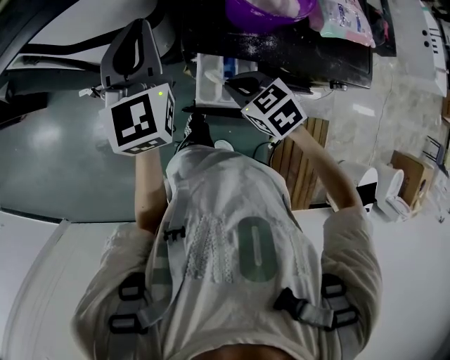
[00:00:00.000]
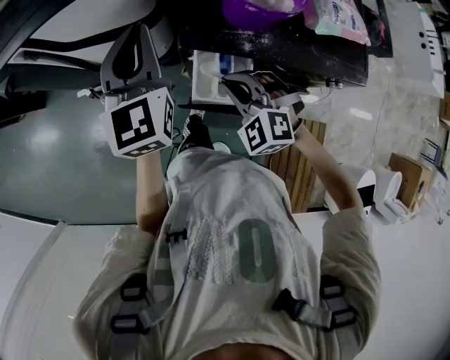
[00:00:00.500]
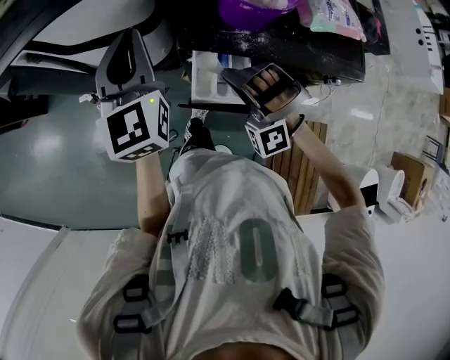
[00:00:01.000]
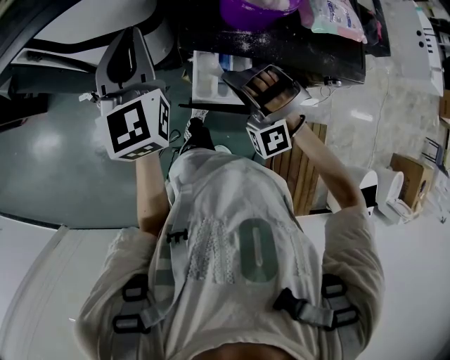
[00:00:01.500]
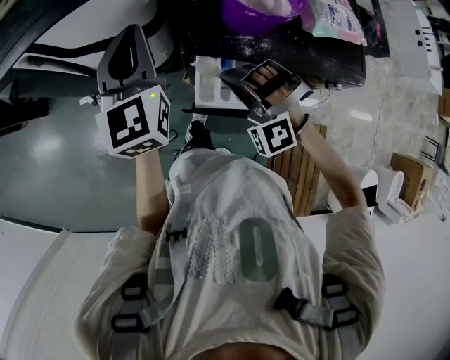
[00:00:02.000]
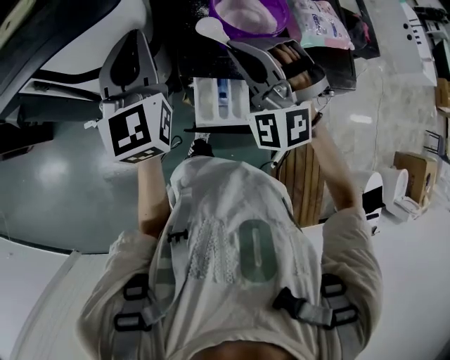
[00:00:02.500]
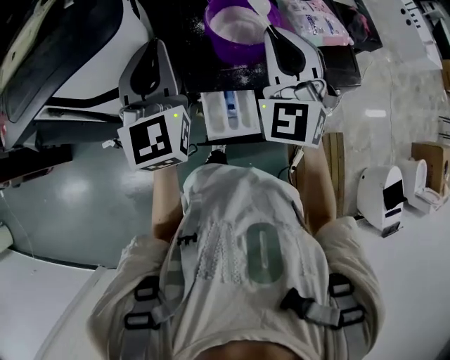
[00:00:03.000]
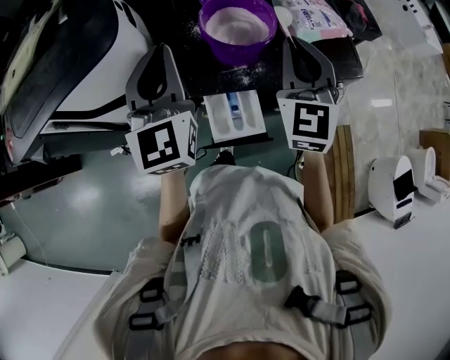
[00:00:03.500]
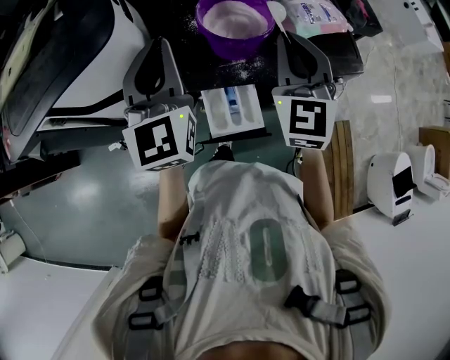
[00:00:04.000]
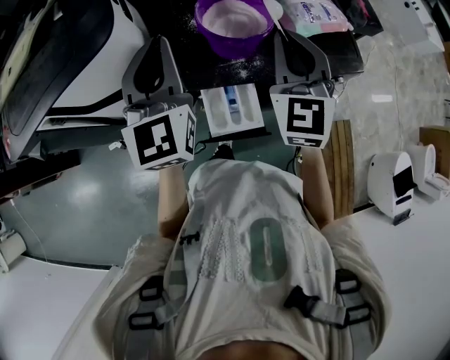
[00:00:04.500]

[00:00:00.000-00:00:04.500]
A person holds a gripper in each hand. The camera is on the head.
00:00:00.000 to 00:00:02.000: The right gripper heads upward, covering about 5 cm, and rolls counterclockwise, seen from behind, by about 80 degrees.
00:00:02.000 to 00:00:04.500: The left gripper ends up some 10 cm from where it was. Meanwhile the right gripper moves upward, about 15 cm, and twists approximately 70 degrees clockwise, seen from behind.

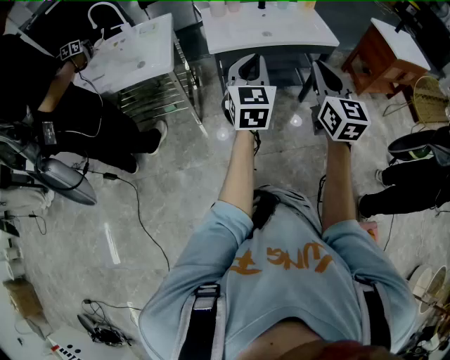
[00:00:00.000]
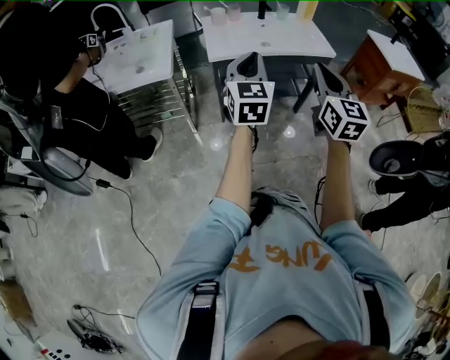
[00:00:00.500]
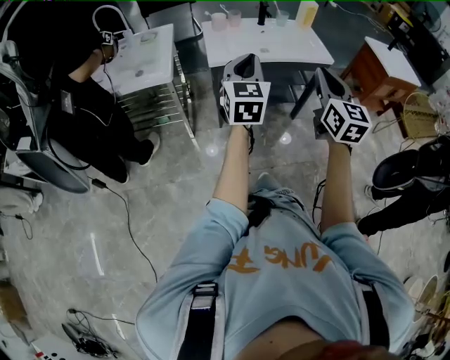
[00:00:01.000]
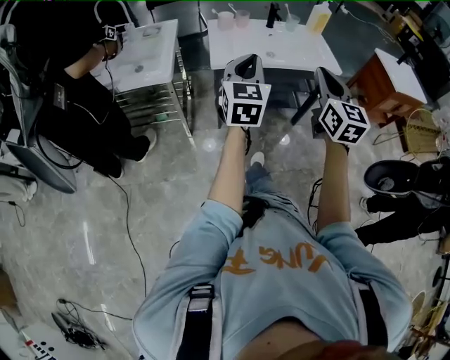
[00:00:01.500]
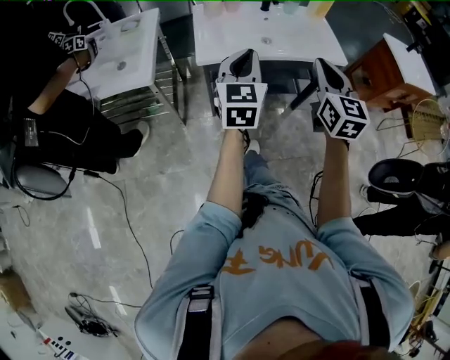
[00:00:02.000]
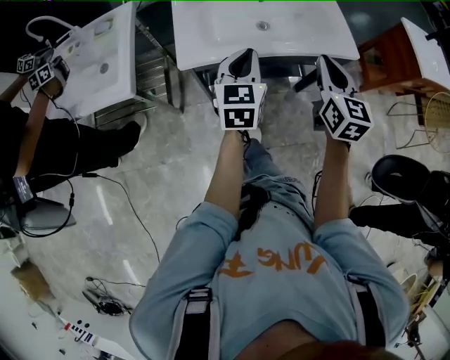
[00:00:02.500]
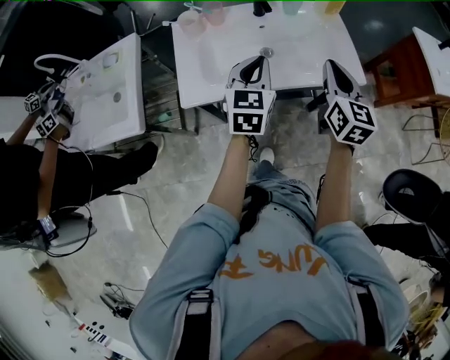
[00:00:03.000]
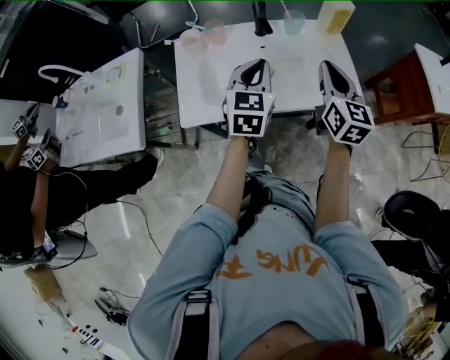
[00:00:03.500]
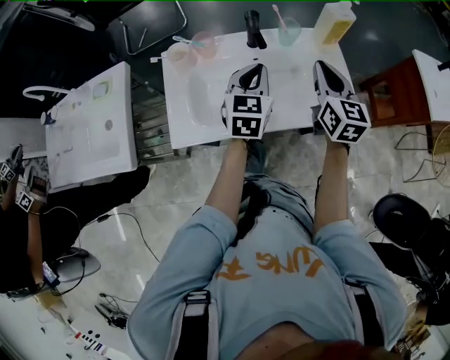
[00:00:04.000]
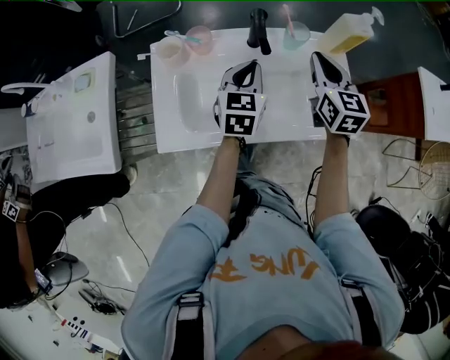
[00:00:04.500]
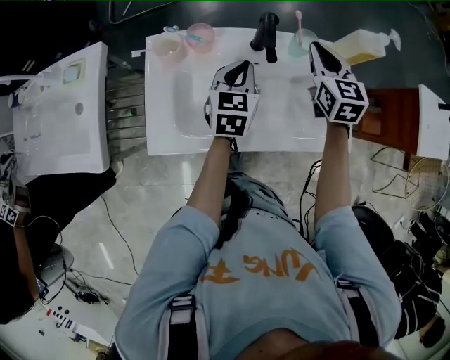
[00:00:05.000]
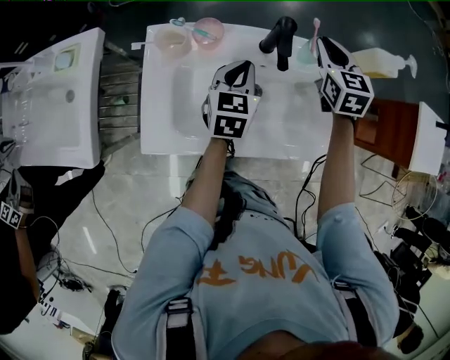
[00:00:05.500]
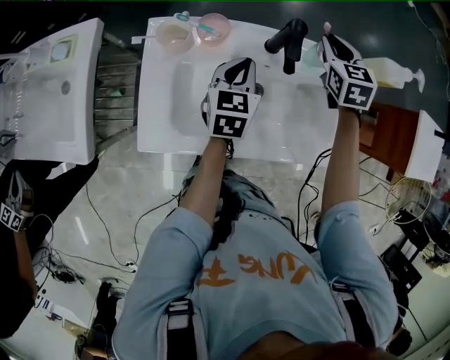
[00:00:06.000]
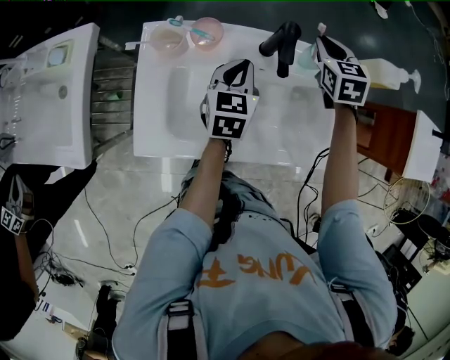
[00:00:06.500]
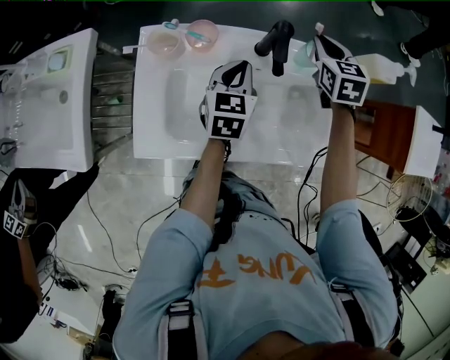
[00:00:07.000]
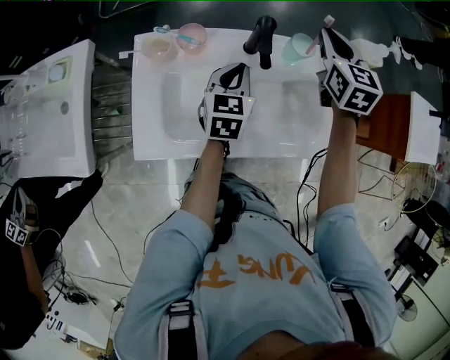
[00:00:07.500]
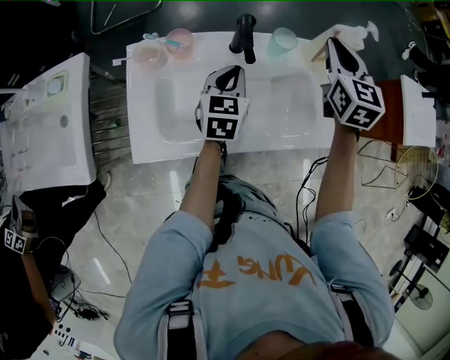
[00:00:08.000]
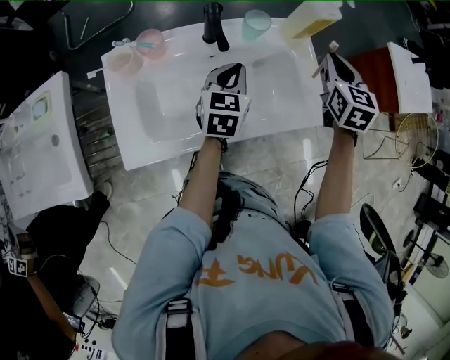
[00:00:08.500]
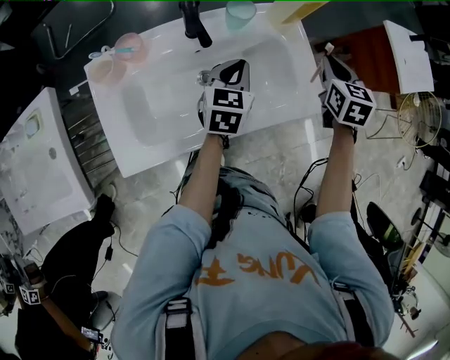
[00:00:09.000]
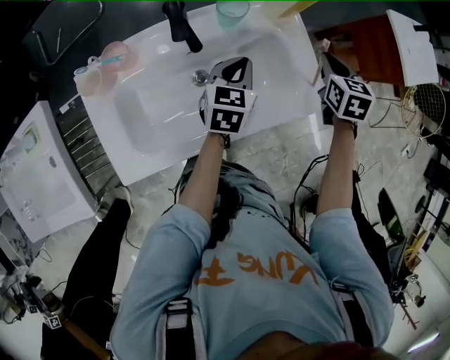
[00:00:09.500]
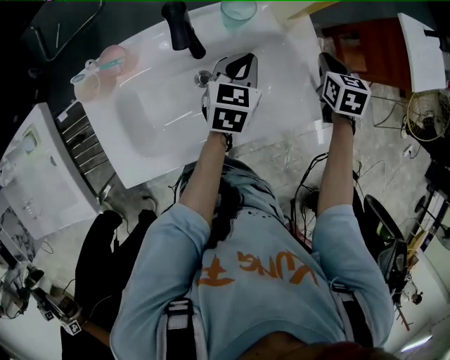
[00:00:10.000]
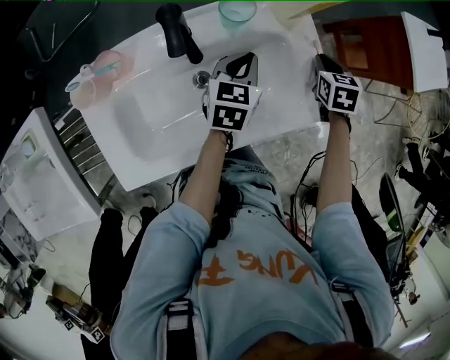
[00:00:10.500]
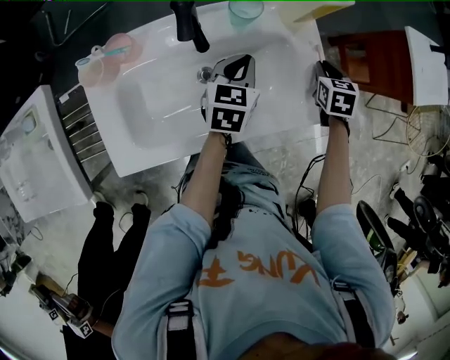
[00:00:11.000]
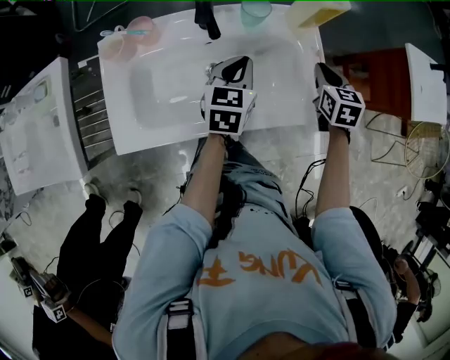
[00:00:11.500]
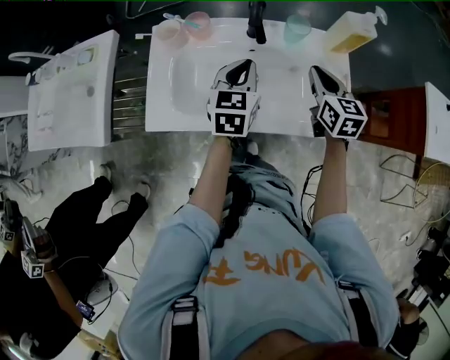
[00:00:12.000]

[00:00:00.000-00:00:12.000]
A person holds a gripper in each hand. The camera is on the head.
00:00:00.000 to 00:00:02.000: Both grippers travel together forward, some 20 cm.
00:00:02.000 to 00:00:04.000: Both grippers are carried forward, some 40 cm.
00:00:04.000 to 00:00:06.000: The right gripper is displaced forward and downward by some 25 cm, and turns by approximately 30 degrees; the left gripper shifts about 20 cm forward, downward and to the left.
00:00:06.000 to 00:00:08.000: The left gripper goes about 5 cm to the right. Meanwhile the right gripper moves upward, backward and to the right, about 20 cm, and rotates roughly 20 degrees.
00:00:08.000 to 00:00:10.000: The right gripper is displaced downward and to the right by about 30 cm, and tilts its fingers roughly 30 degrees downward. Meanwhile the left gripper heads to the right, forward and downward, covering some 15 cm, and turns by about 20 degrees.
00:00:10.000 to 00:00:12.000: The left gripper changes place by about 20 cm, and swivels some 30 degrees. Meanwhile the right gripper shifts by approximately 20 cm, and turns by some 40 degrees.

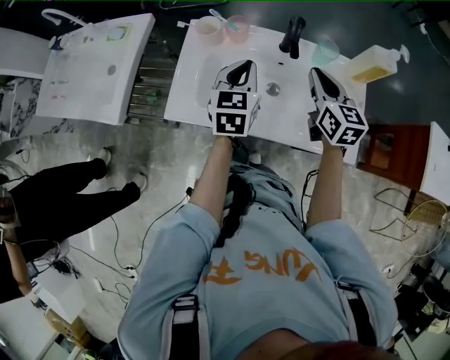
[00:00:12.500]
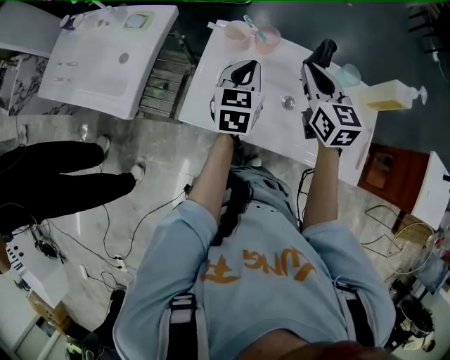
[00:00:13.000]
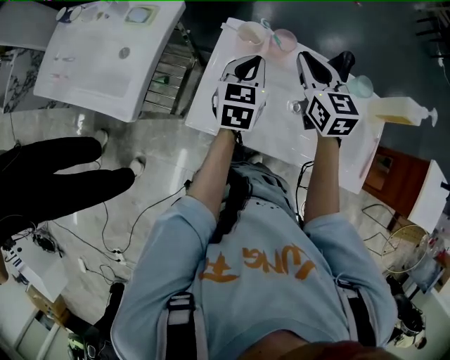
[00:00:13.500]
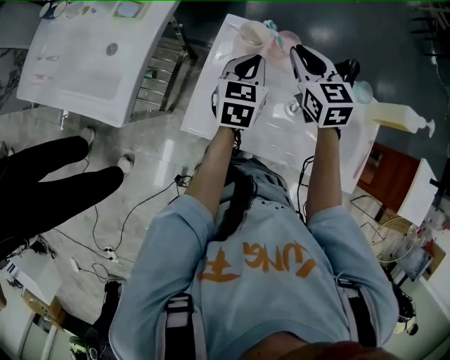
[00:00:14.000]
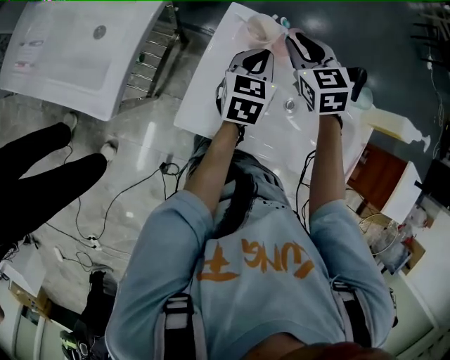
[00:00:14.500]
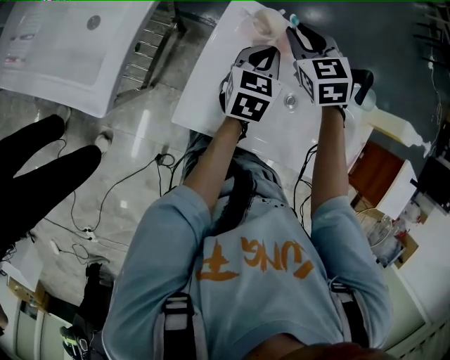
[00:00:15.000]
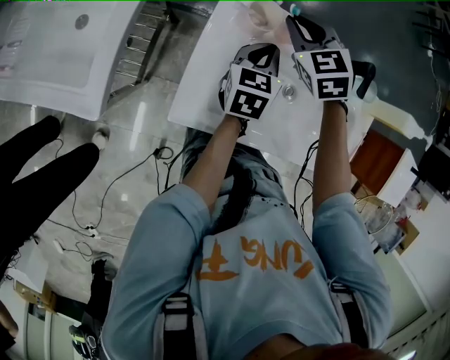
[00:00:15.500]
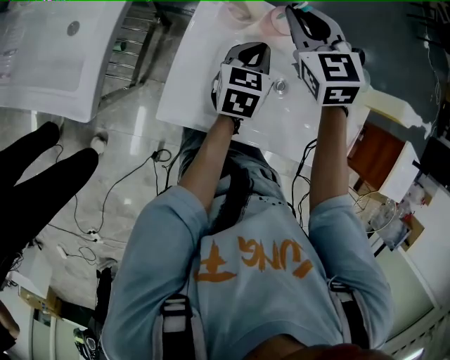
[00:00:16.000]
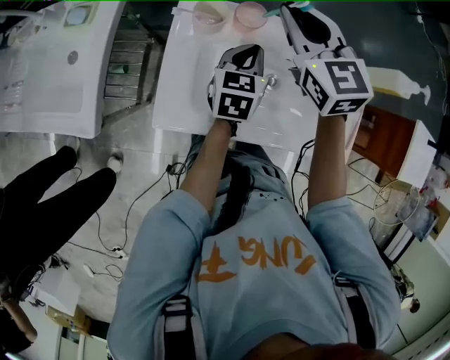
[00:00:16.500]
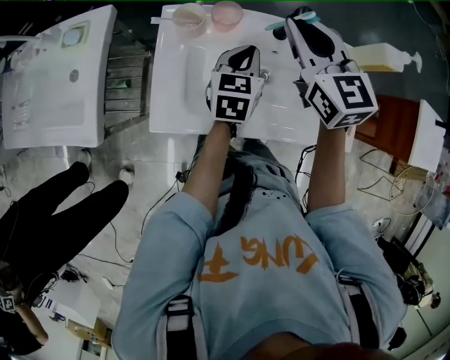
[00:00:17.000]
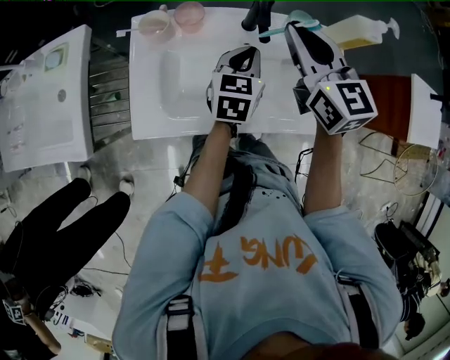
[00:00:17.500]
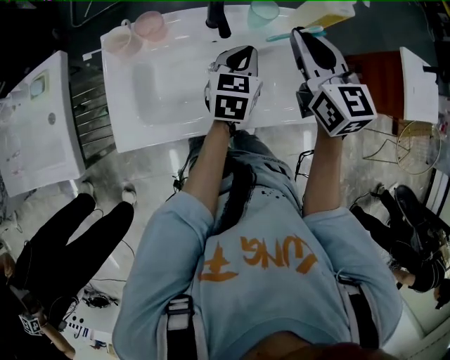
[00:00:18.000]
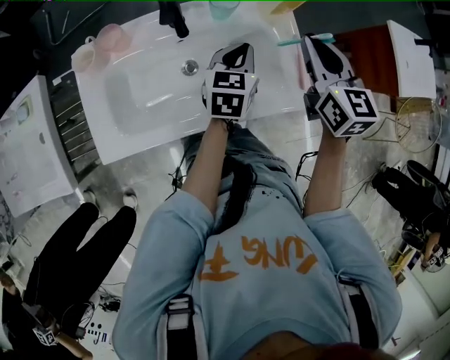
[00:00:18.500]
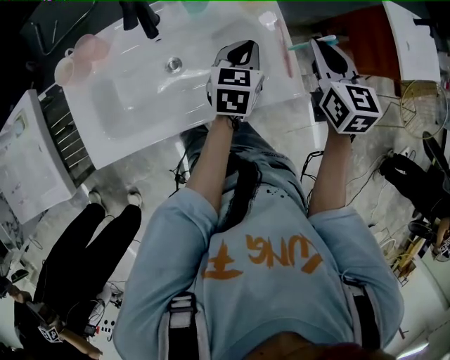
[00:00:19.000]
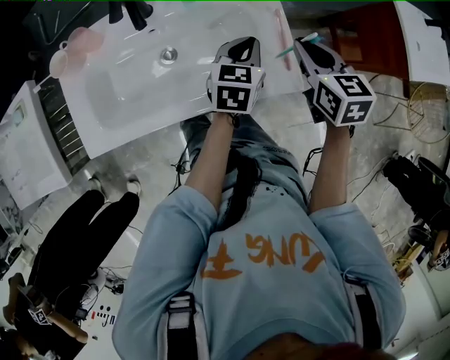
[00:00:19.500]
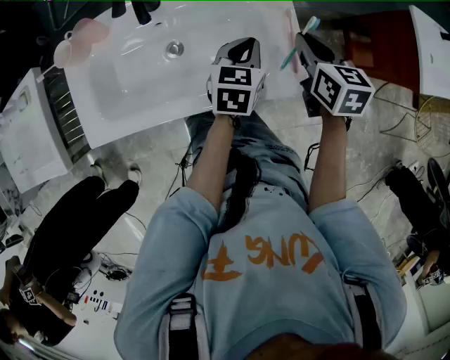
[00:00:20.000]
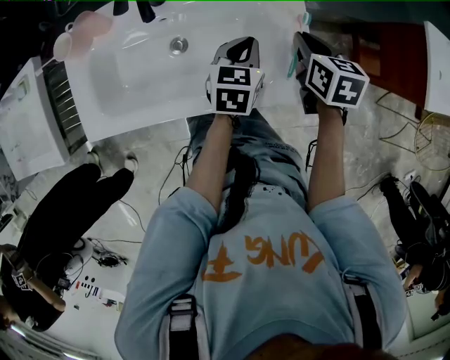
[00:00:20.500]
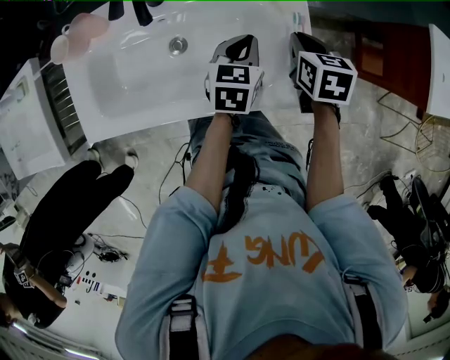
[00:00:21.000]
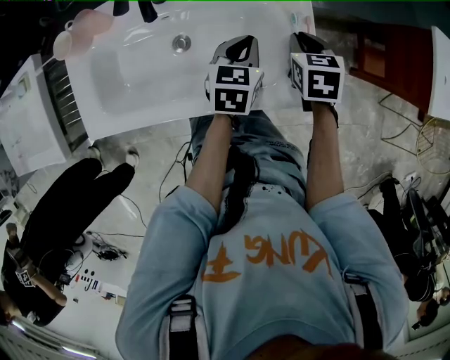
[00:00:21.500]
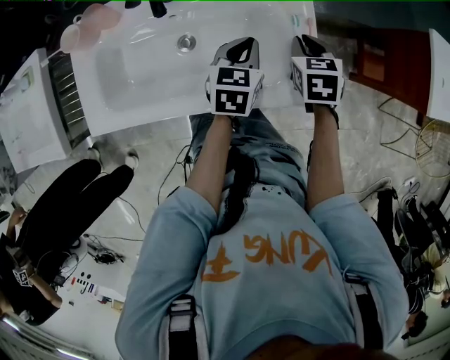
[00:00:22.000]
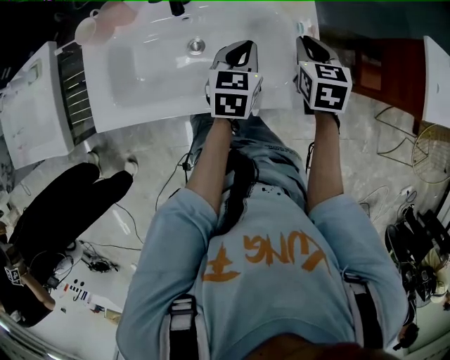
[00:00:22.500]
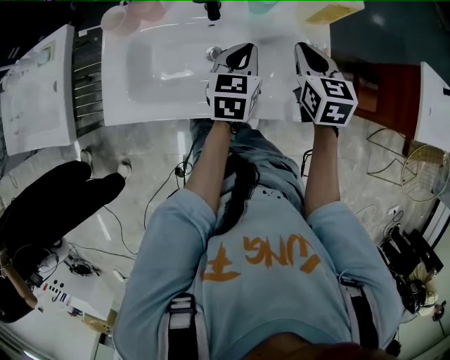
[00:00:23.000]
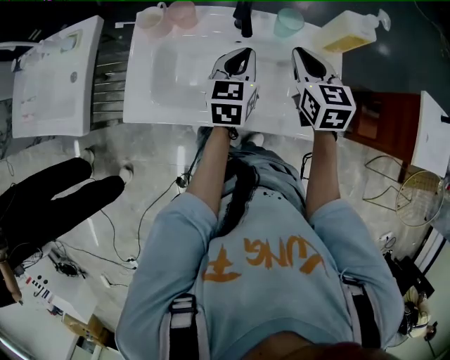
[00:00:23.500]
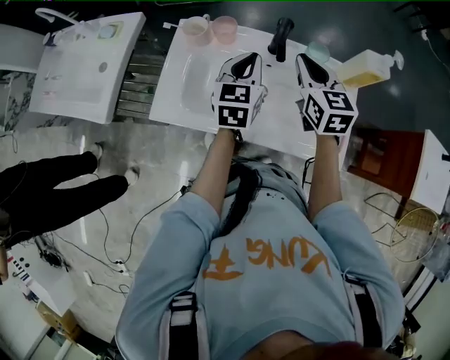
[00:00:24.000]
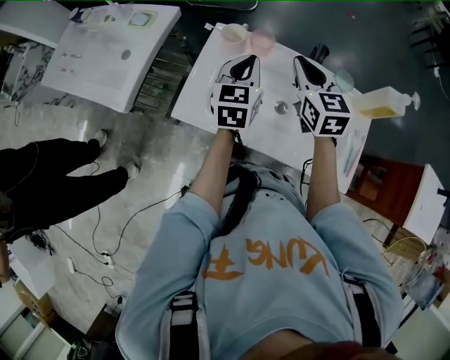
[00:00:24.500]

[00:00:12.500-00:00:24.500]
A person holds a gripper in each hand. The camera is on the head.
00:00:12.500 to 00:00:14.500: The left gripper travels forward, to the left and downward by some 20 cm. The right gripper is displaced to the left and forward by approximately 30 cm, and turns by approximately 40 degrees.
00:00:14.500 to 00:00:16.500: The left gripper travels to the right by about 10 cm; the right gripper heads upward and to the right, covering approximately 10 cm.
00:00:16.500 to 00:00:18.500: The right gripper ends up roughly 40 cm from where it was, and changes its angle by approximately 40 degrees. The left gripper shifts by approximately 30 cm, and rotates roughly 20 degrees.
00:00:18.500 to 00:00:20.500: The left gripper travels downward and to the right by some 10 cm, while the right gripper moves downward and to the right, roughly 20 cm, and swivels some 30 degrees.
00:00:20.500 to 00:00:22.500: The left gripper shifts roughly 5 cm to the left.
00:00:22.500 to 00:00:24.500: The left gripper shifts by about 35 cm, and swivels some 30 degrees. Meanwhile the right gripper moves some 40 cm, and rotates roughly 40 degrees.
